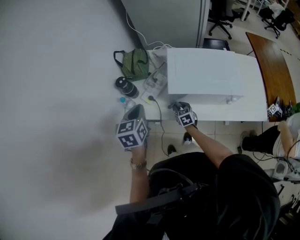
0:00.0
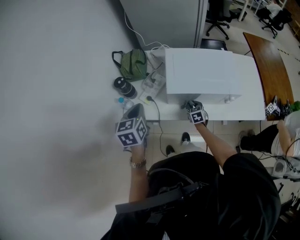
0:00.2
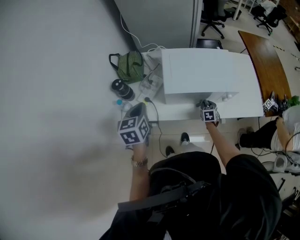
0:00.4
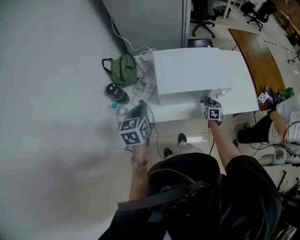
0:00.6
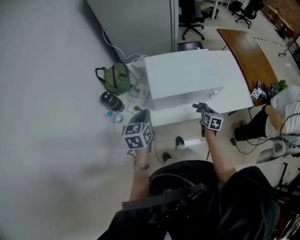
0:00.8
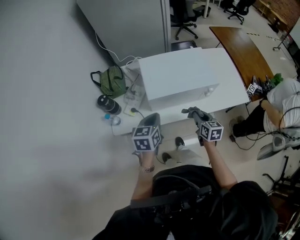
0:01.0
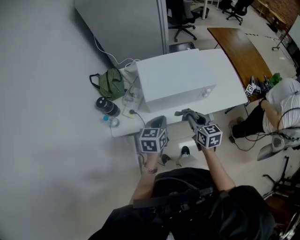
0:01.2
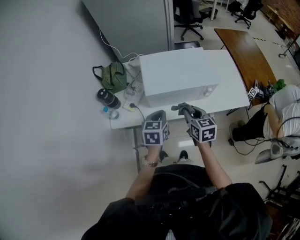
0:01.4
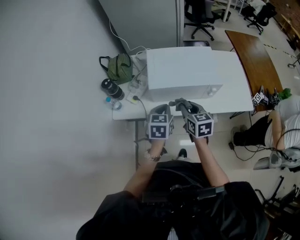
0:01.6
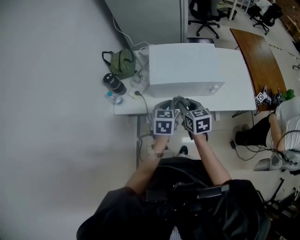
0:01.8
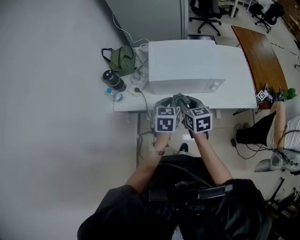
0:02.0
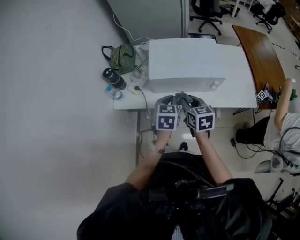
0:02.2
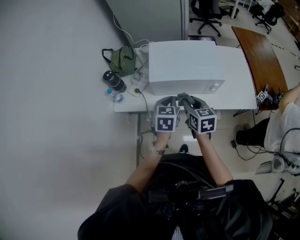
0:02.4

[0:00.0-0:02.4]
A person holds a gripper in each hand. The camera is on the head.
0:00.0 to 0:01.2: The left gripper moves some 20 cm, and rotates about 30 degrees. Meanwhile the right gripper goes approximately 25 cm upward, and rotates approximately 30 degrees.
0:01.2 to 0:02.4: There are only small adjustments of the grippers.

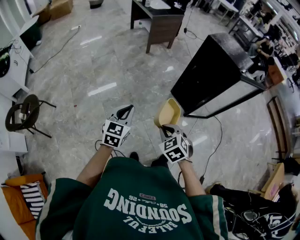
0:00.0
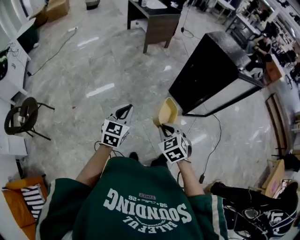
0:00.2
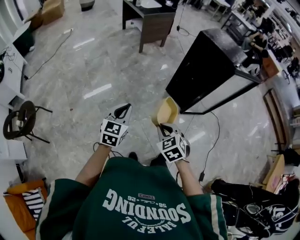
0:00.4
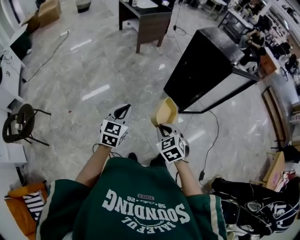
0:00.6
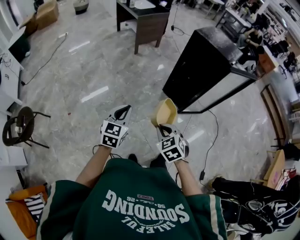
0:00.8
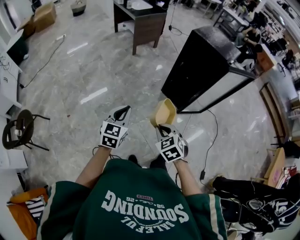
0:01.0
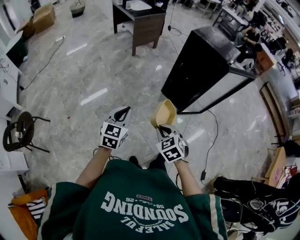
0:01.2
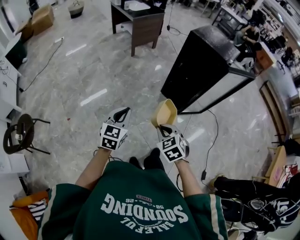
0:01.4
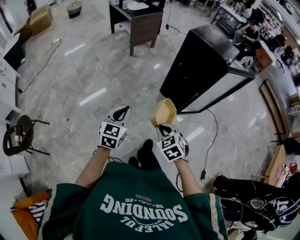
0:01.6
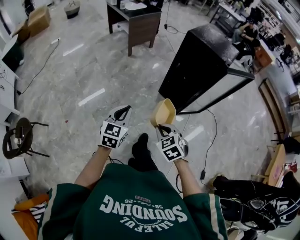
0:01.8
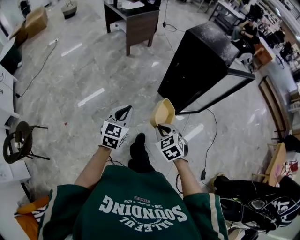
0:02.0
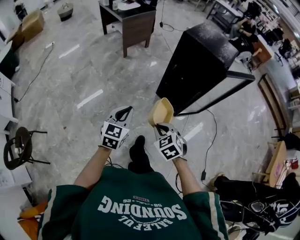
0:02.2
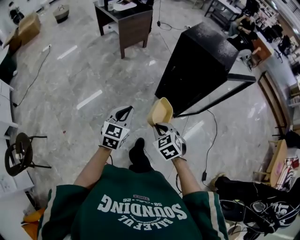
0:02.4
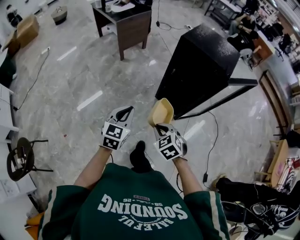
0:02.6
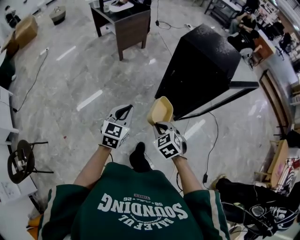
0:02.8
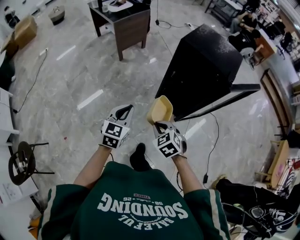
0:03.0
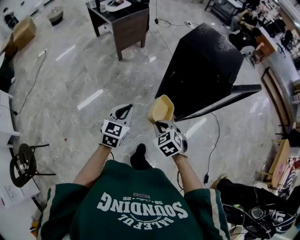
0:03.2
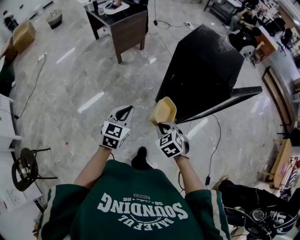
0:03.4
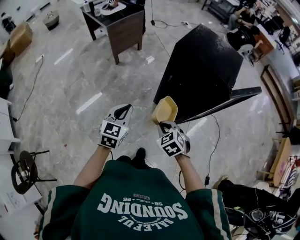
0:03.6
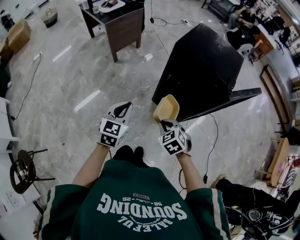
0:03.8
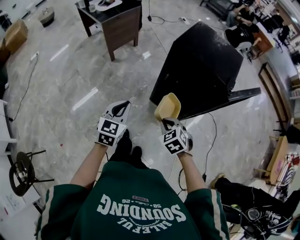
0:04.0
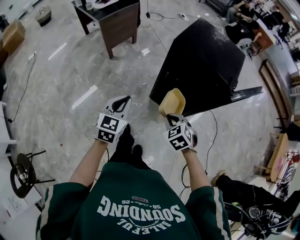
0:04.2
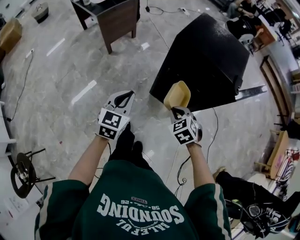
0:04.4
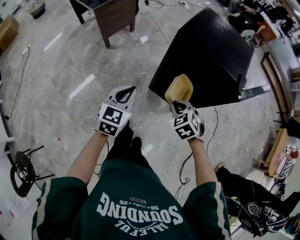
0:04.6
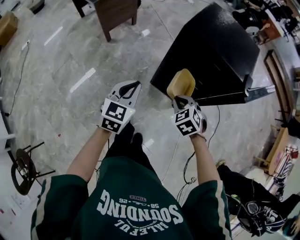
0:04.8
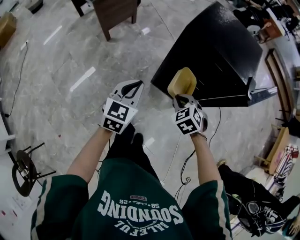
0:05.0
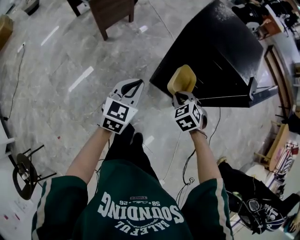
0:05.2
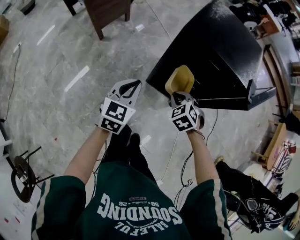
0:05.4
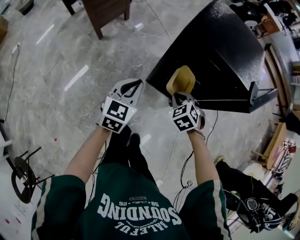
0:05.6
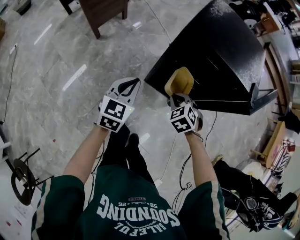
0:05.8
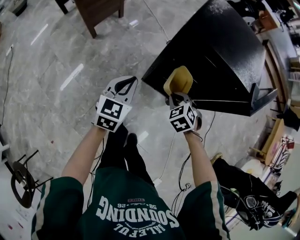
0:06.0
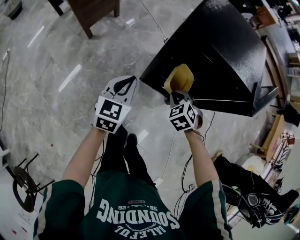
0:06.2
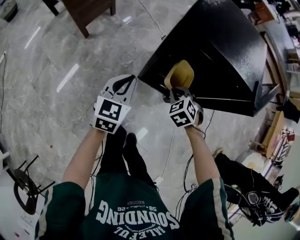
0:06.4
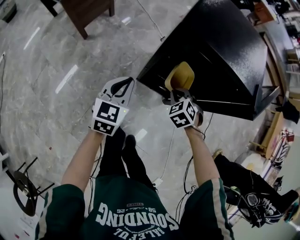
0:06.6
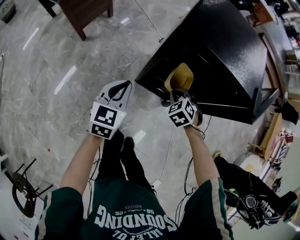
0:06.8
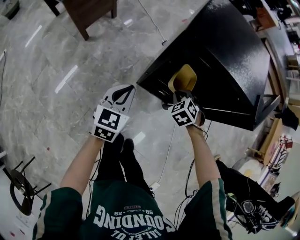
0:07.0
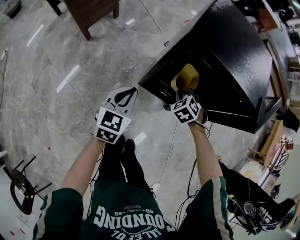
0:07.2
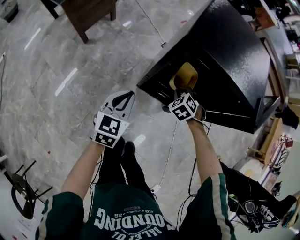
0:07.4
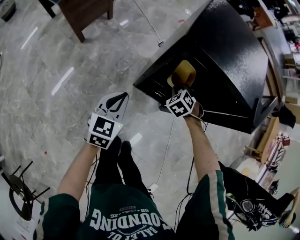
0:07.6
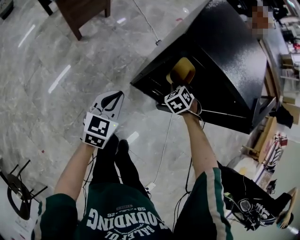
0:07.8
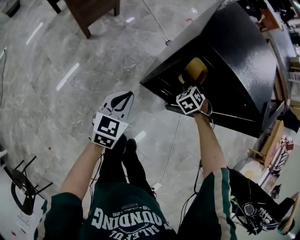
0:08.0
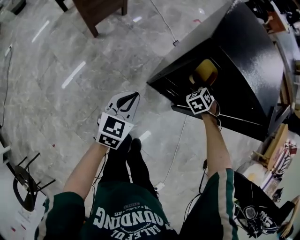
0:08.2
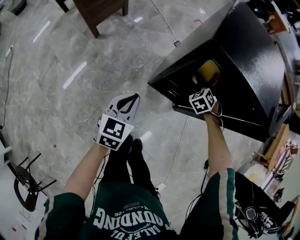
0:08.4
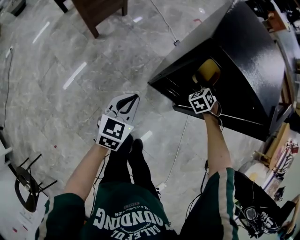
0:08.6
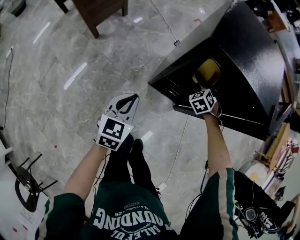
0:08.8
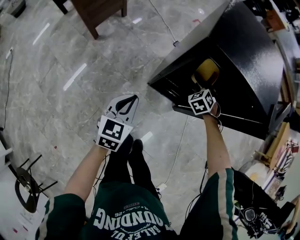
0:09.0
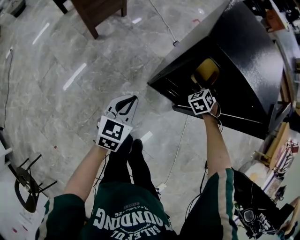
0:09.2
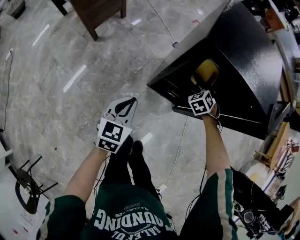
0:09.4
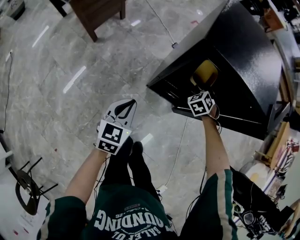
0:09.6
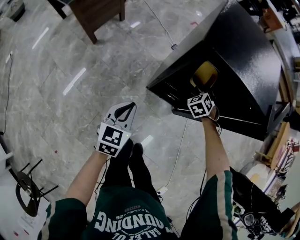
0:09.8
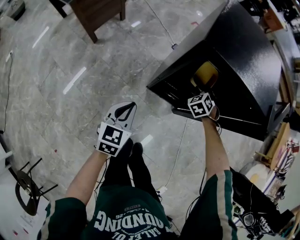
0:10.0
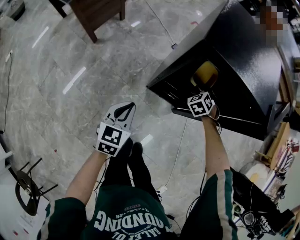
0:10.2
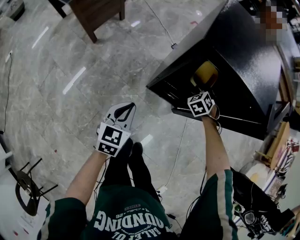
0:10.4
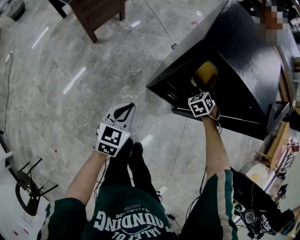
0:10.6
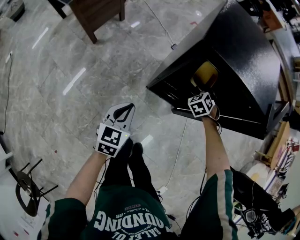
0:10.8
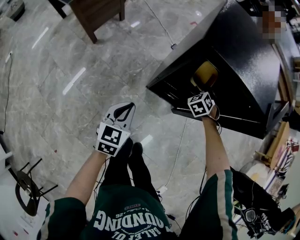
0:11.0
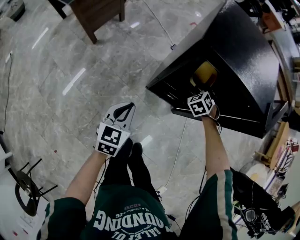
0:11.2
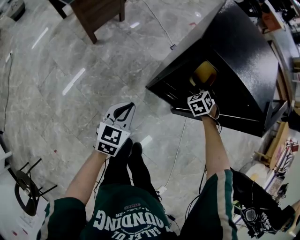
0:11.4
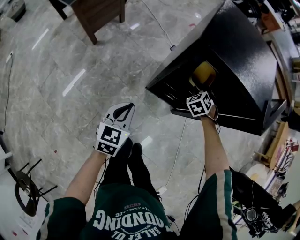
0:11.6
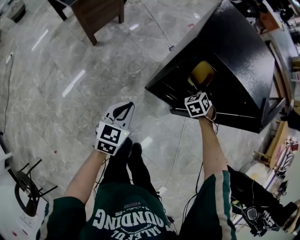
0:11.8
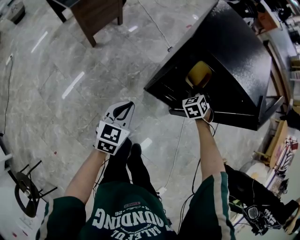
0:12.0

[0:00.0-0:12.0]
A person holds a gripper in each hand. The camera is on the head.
0:00.0 to 0:01.6: The left gripper changes place by about 5 cm.
0:01.6 to 0:03.0: The two grippers go some 25 cm forward.
0:03.0 to 0:04.4: The right gripper travels forward and to the right by some 20 cm; the left gripper moves forward, roughly 15 cm.
0:04.4 to 0:06.0: The two grippers go about 15 cm forward and downward.
0:06.0 to 0:07.6: The right gripper shifts about 15 cm forward and downward; the left gripper heads downward, covering approximately 5 cm.
0:07.6 to 0:09.0: The right gripper changes place by about 5 cm.
0:09.0 to 0:12.0: There are only small adjustments of the grippers.

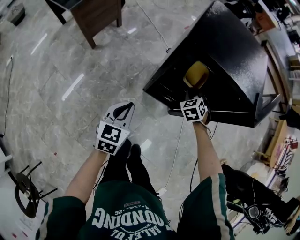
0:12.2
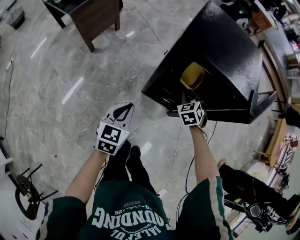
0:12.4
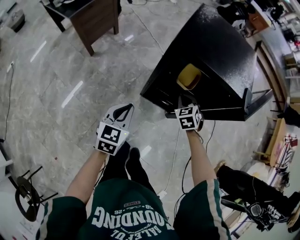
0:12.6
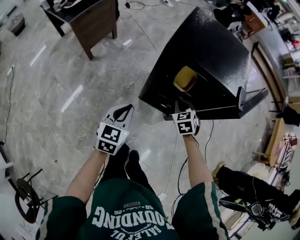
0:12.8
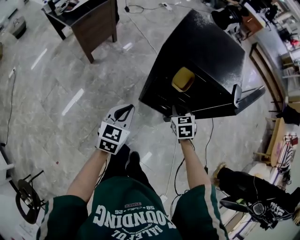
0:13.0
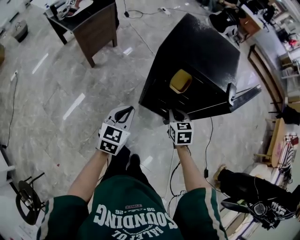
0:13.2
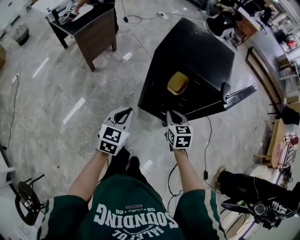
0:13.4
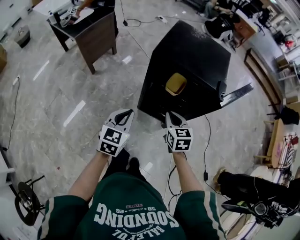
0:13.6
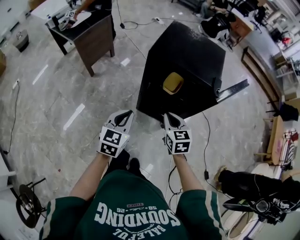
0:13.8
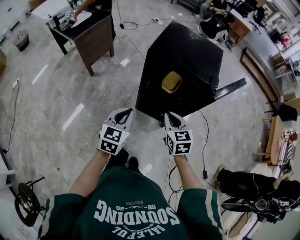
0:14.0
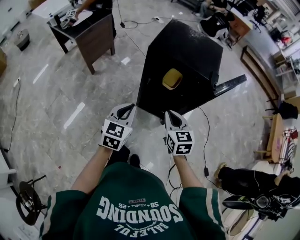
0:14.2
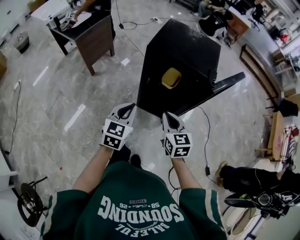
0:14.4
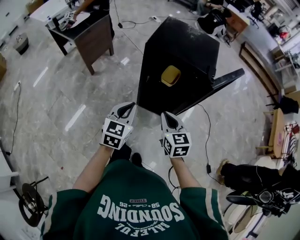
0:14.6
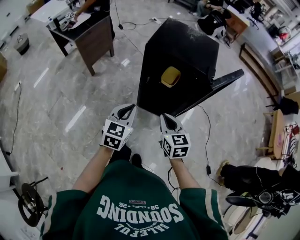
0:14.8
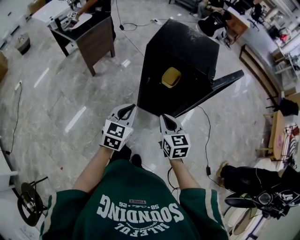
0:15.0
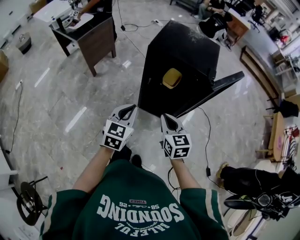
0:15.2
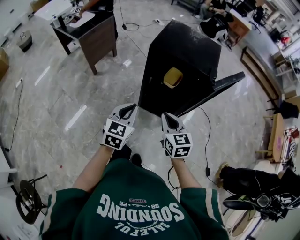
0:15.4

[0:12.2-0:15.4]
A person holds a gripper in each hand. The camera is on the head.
0:12.2 to 0:13.8: The left gripper moves upward, to the right and backward, about 15 cm, while the right gripper heads upward and backward, covering some 25 cm, and changes its angle by approximately 40 degrees.
0:13.8 to 0:15.4: The right gripper heads backward, covering about 10 cm.

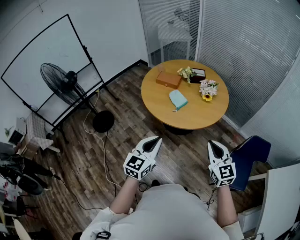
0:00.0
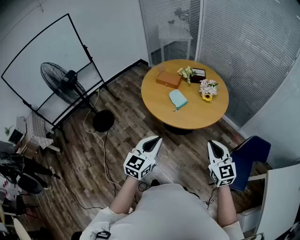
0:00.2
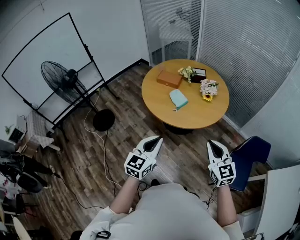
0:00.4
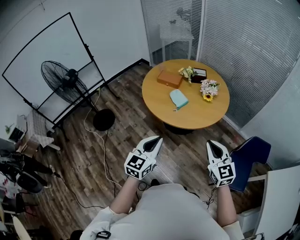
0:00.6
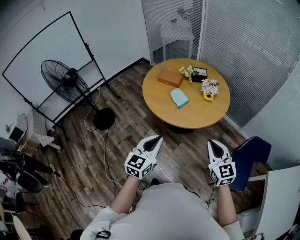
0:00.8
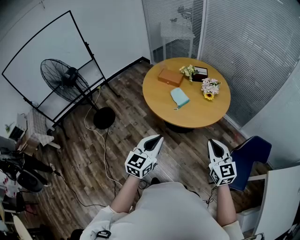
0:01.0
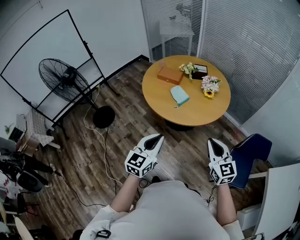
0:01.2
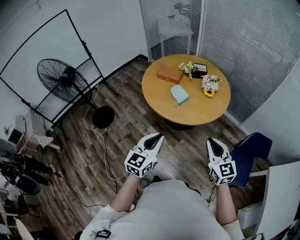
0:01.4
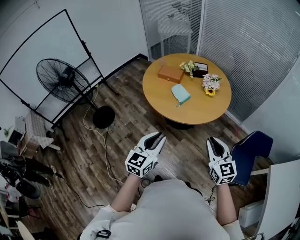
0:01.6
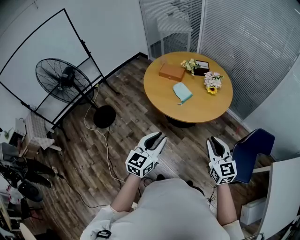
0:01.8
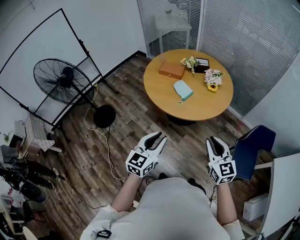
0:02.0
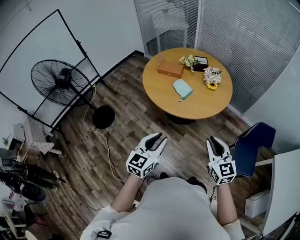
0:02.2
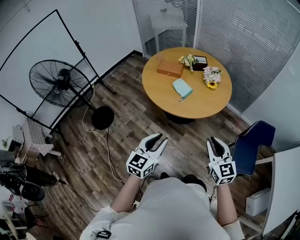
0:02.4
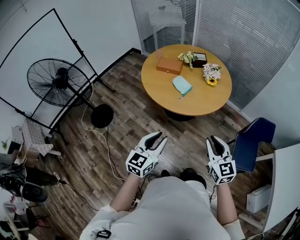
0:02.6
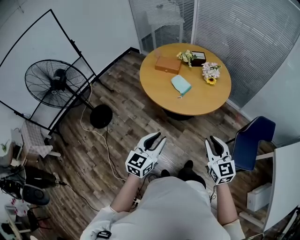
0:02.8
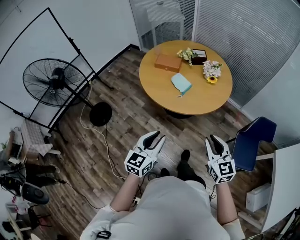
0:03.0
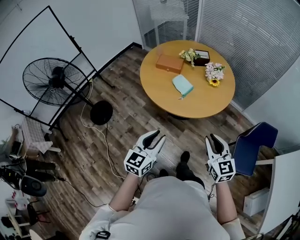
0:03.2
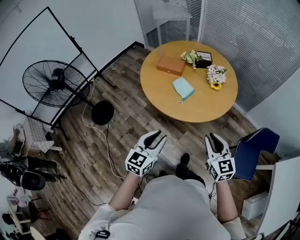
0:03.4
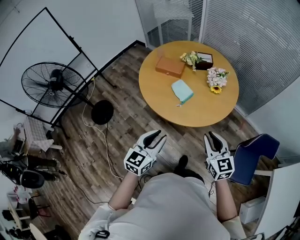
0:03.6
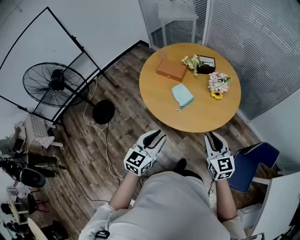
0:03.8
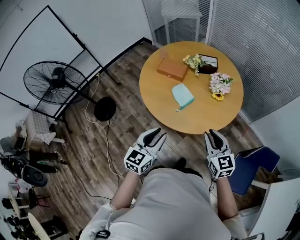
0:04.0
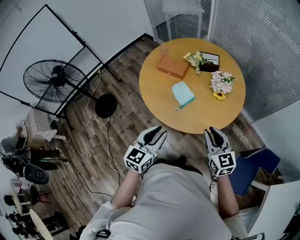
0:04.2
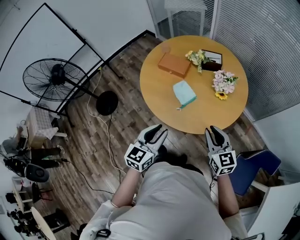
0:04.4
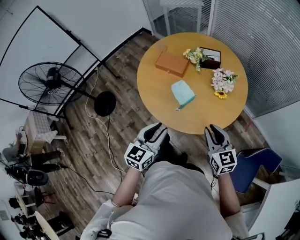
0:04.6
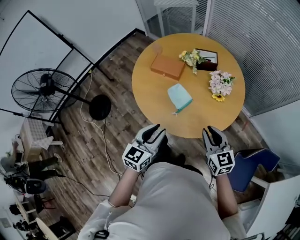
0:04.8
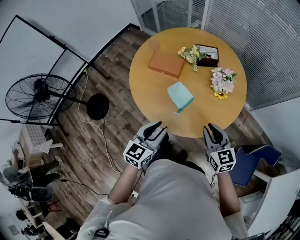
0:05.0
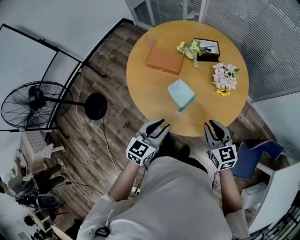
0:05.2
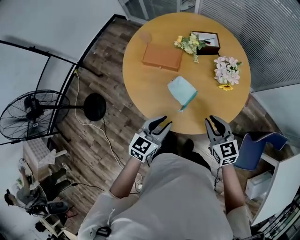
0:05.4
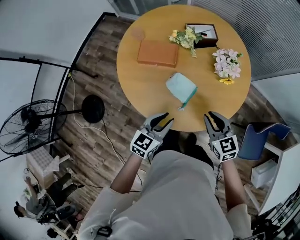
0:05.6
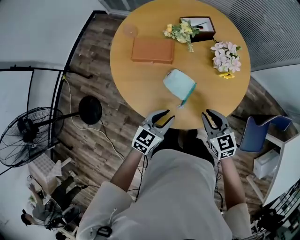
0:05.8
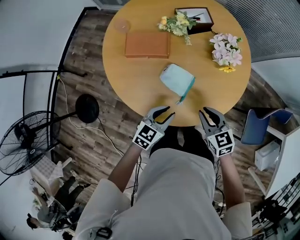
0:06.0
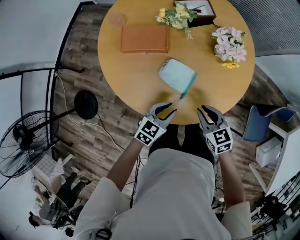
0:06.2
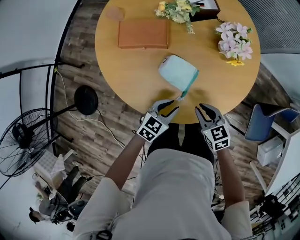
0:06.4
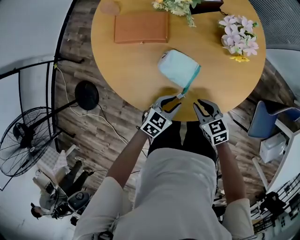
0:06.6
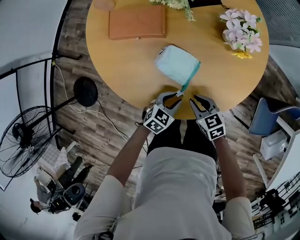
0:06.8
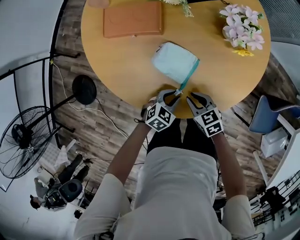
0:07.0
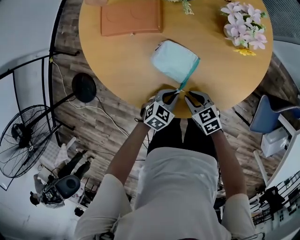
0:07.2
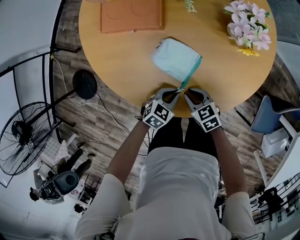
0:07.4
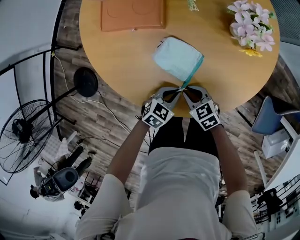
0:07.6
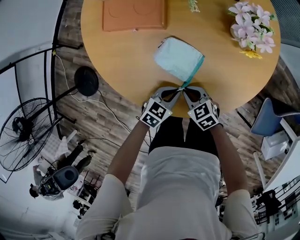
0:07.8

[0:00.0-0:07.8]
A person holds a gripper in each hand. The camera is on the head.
0:00.0 to 0:01.6: The grippers make only small movements.
0:01.6 to 0:03.2: The left gripper is displaced forward and to the left by approximately 5 cm. Meanwhile the right gripper shifts some 5 cm to the left.
0:03.2 to 0:04.6: The two grippers go roughly 25 cm forward.
0:04.6 to 0:06.2: The right gripper goes approximately 30 cm downward, forward and to the left, and turns by roughly 30 degrees. Meanwhile the left gripper shifts about 35 cm downward and forward, and swivels some 40 degrees.
0:06.2 to 0:07.8: The grippers both shift downward by roughly 15 cm. The right gripper turns by some 20 degrees.
